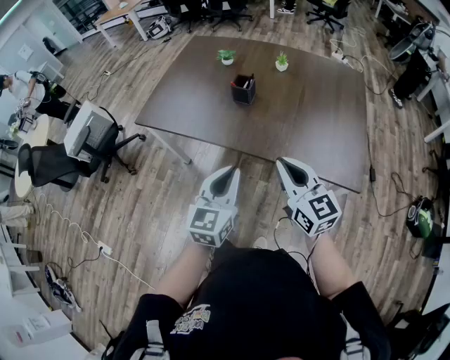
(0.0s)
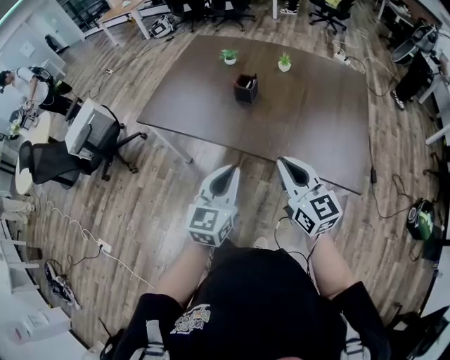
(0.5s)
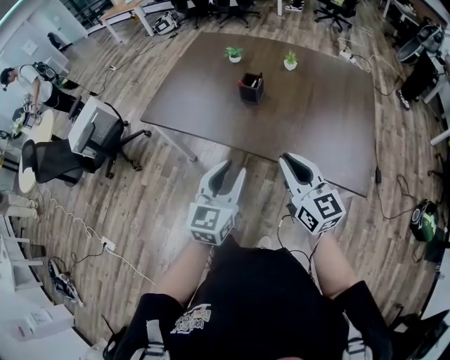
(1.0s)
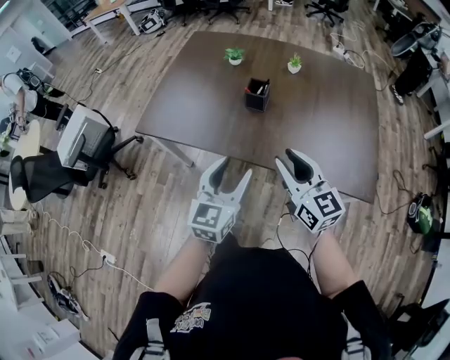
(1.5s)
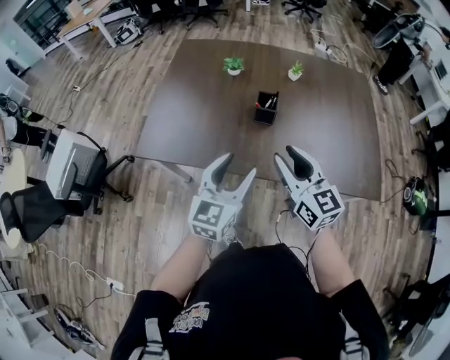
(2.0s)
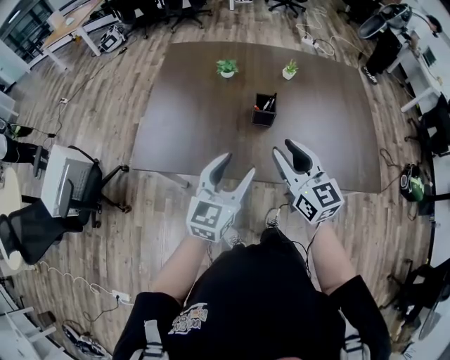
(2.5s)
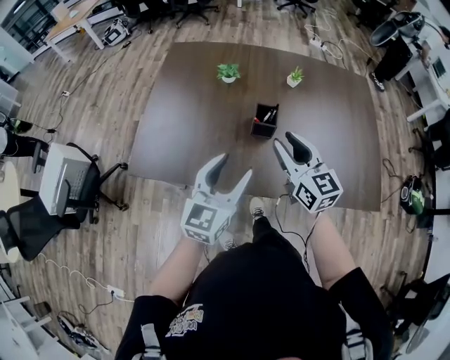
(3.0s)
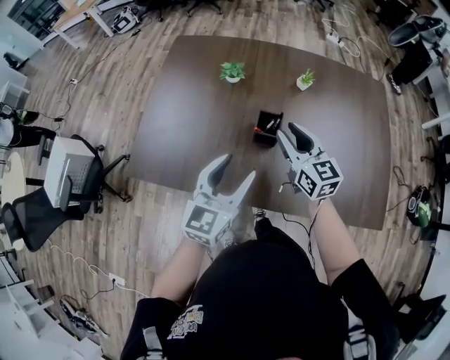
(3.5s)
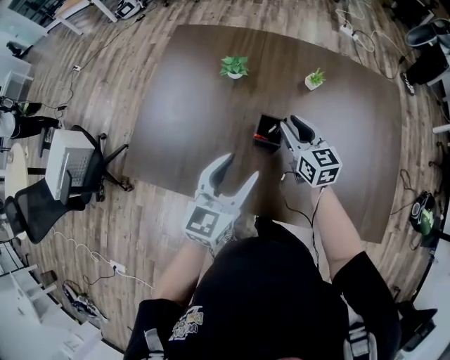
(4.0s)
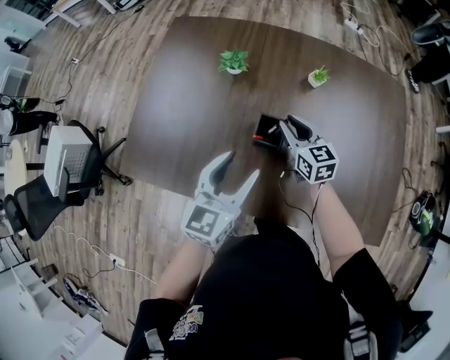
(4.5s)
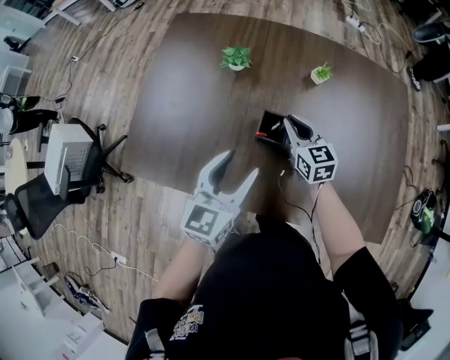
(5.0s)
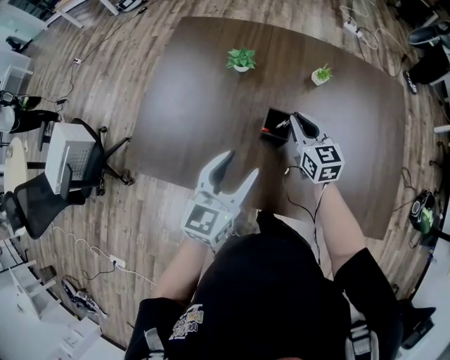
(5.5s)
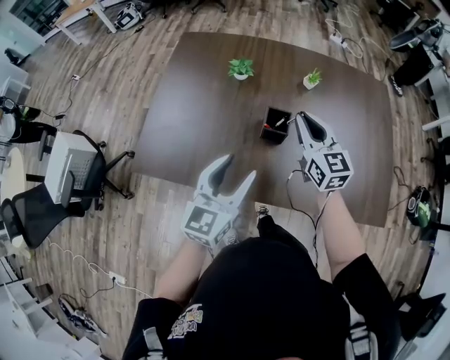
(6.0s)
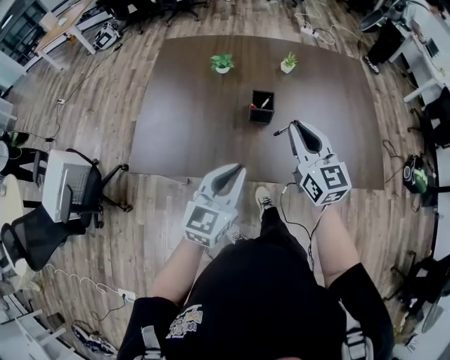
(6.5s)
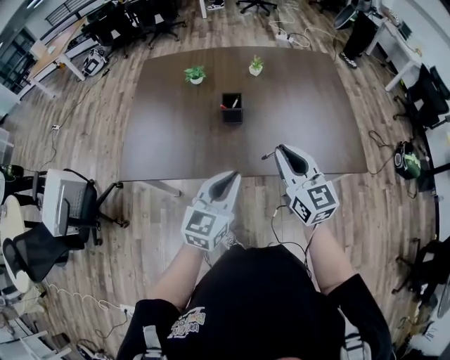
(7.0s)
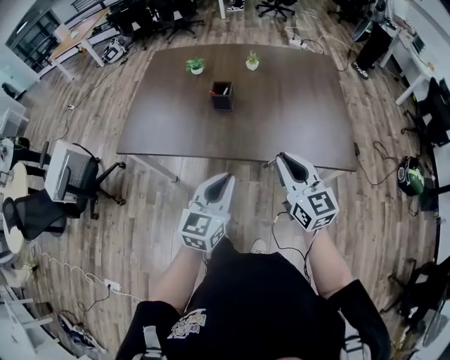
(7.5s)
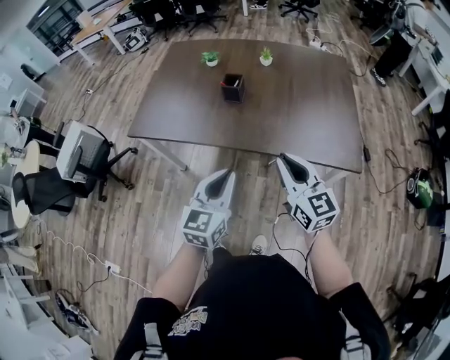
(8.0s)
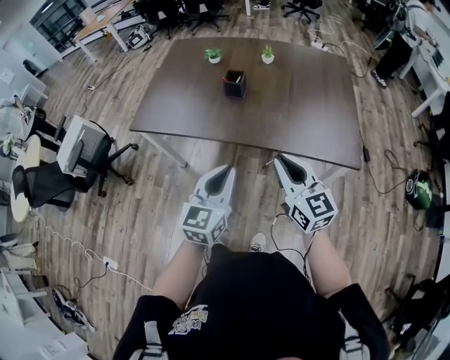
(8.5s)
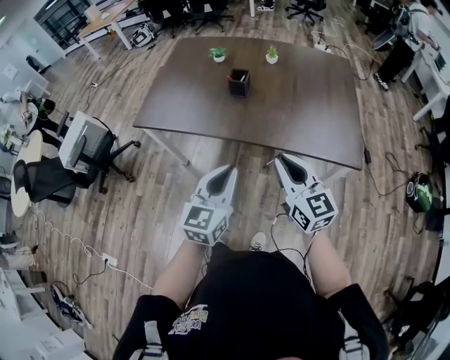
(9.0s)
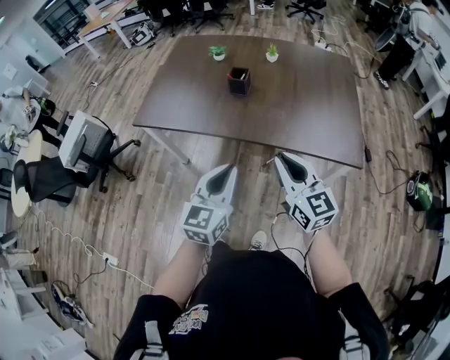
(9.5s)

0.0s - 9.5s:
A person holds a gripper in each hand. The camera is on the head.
0.0s - 2.0s: The grippers both shift forward and to the left by some 25 cm. The right gripper opens; the left gripper opens its fingers.
2.0s - 4.0s: The left gripper moves forward, roughly 20 cm; the right gripper heads forward and downward, covering approximately 35 cm.
4.0s - 5.5s: The right gripper closes up.
5.5s - 7.5s: Both grippers travel together backward and to the right, some 40 cm. The left gripper closes up.
7.5s - 9.5s: Both grippers travel together backward, some 5 cm.

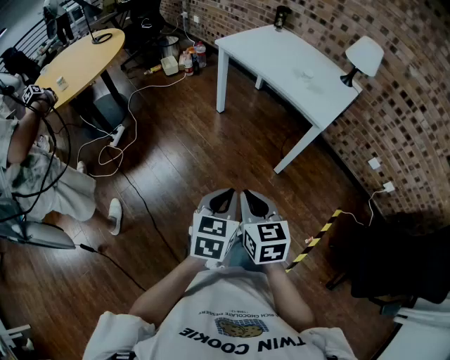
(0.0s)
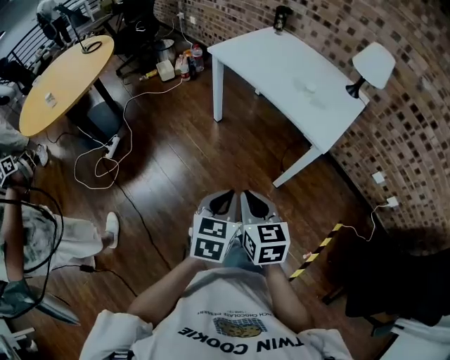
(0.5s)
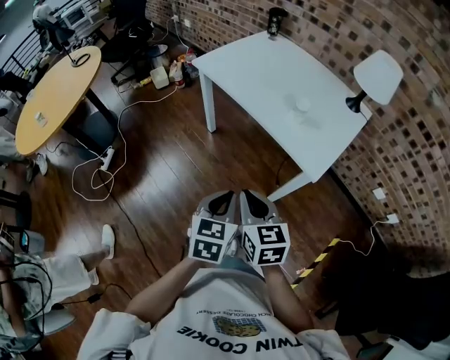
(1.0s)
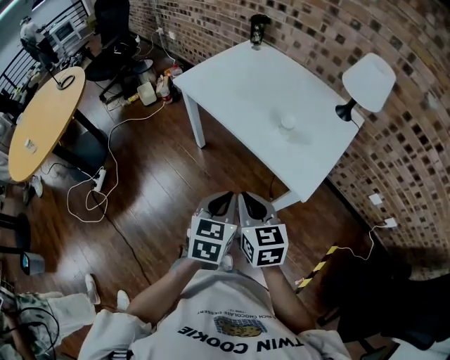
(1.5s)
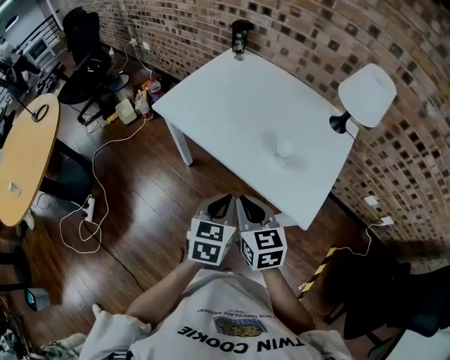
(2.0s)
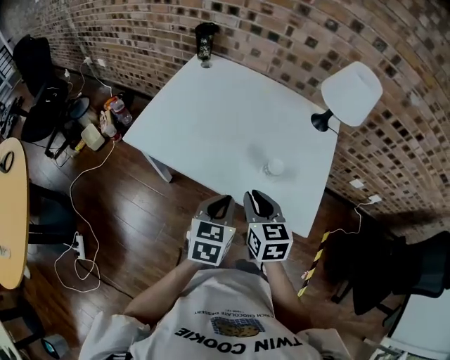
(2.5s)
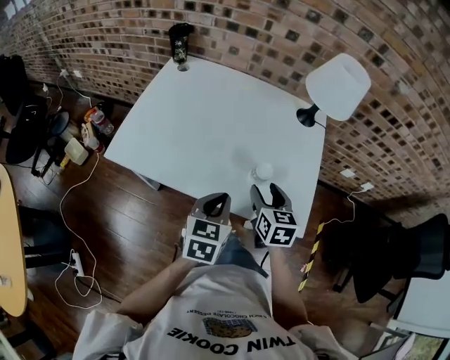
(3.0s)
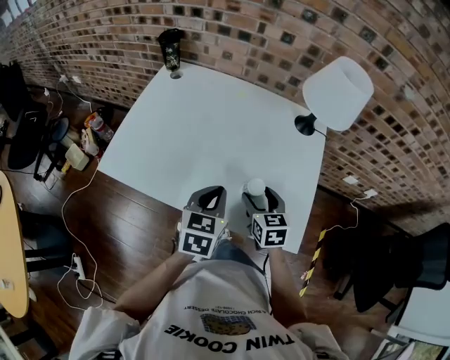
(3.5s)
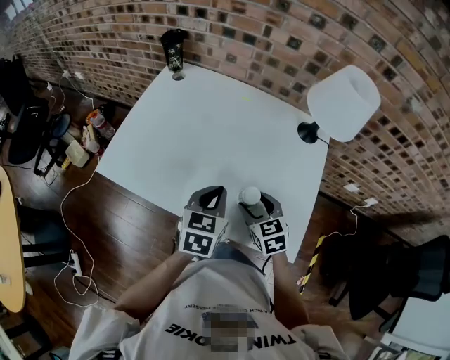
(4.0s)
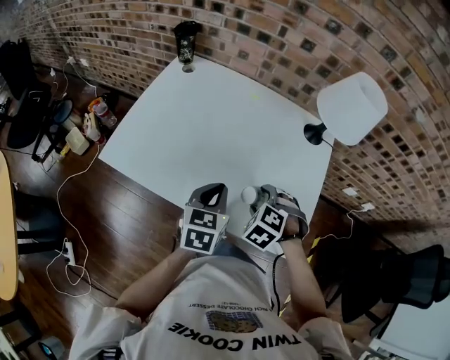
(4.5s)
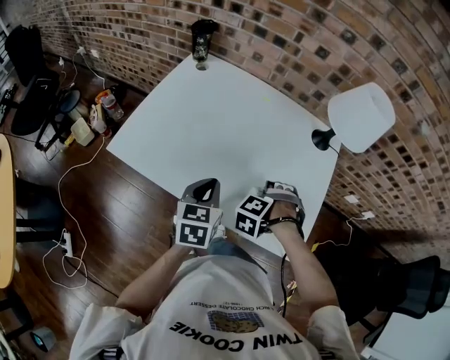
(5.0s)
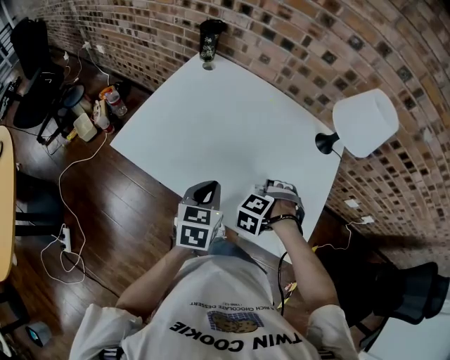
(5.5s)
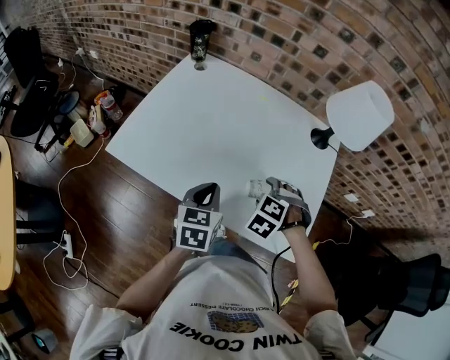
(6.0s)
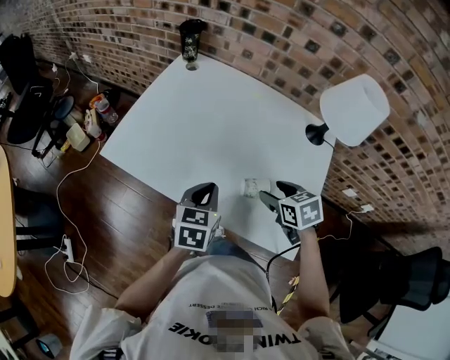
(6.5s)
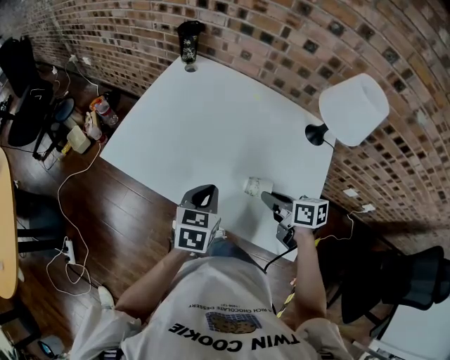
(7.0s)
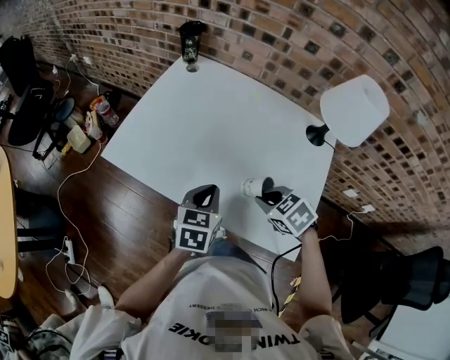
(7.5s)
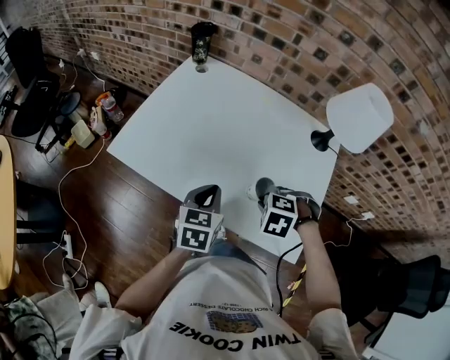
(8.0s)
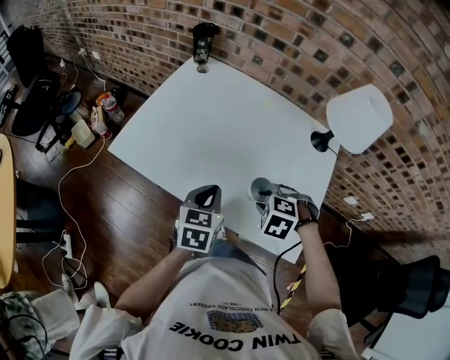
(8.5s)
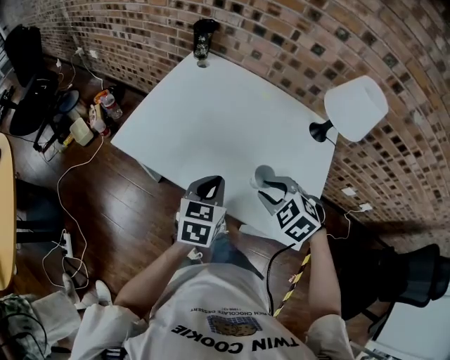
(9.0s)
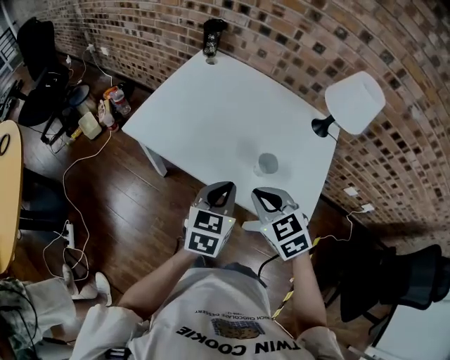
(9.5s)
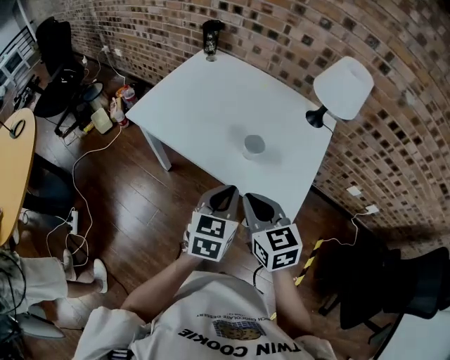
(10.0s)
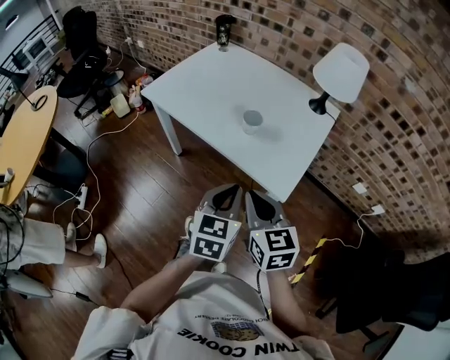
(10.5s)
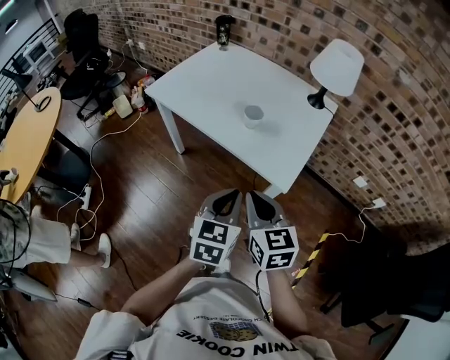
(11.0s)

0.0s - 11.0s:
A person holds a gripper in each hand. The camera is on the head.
0.0s - 2.0s: The two grippers travel together, forward, roughly 50 cm.
2.0s - 3.5s: The left gripper shifts by approximately 20 cm. The right gripper shifts by some 25 cm, swivels some 30 degrees, and opens up.
3.5s - 5.5s: The left gripper moves roughly 10 cm. Meanwhile the right gripper rolls counterclockwise, seen from behind, by about 80 degrees.
5.5s - 7.5s: The right gripper heads upward, covering about 5 cm, changes its angle by approximately 60 degrees, and closes.
7.5s - 9.0s: The right gripper is displaced upward by about 5 cm, and swivels roughly 20 degrees.
9.0s - 11.0s: The grippers both shift backward by about 30 cm. The right gripper angles its fingers upward, by about 40 degrees, and closes.

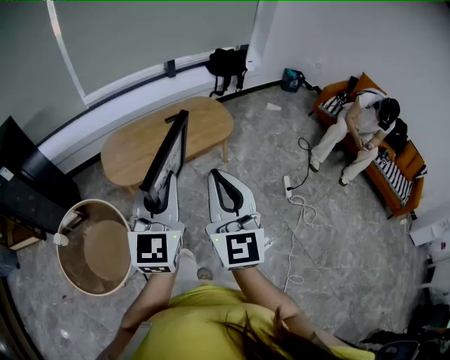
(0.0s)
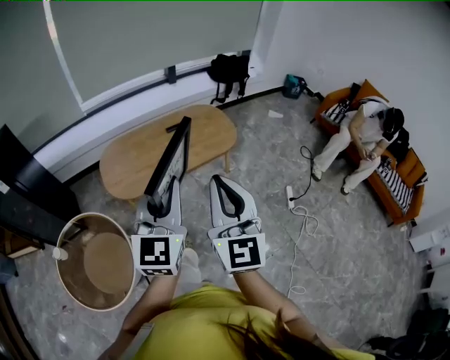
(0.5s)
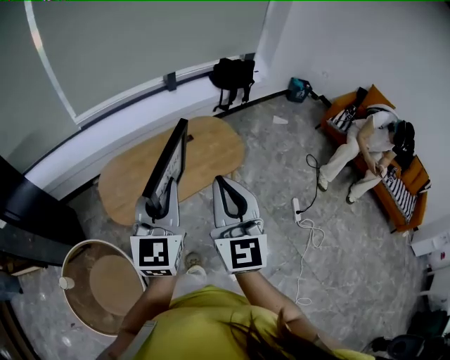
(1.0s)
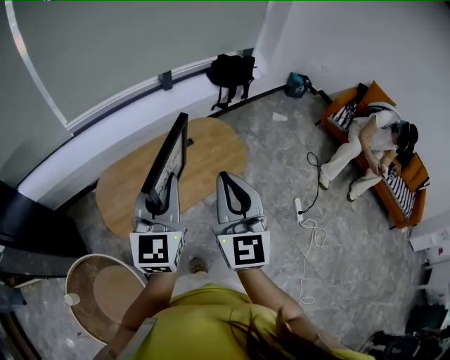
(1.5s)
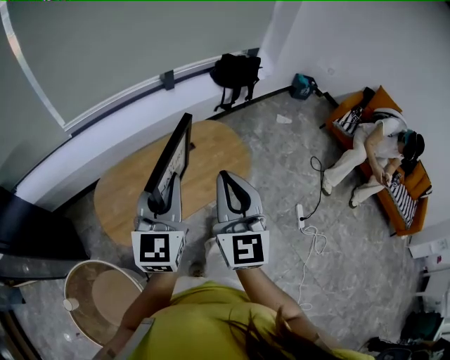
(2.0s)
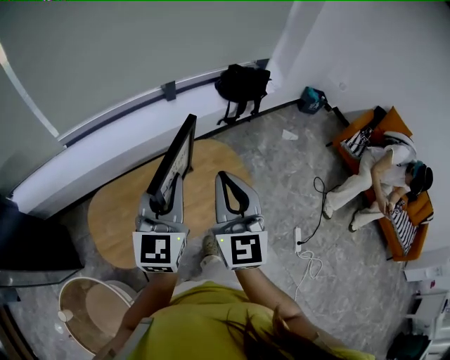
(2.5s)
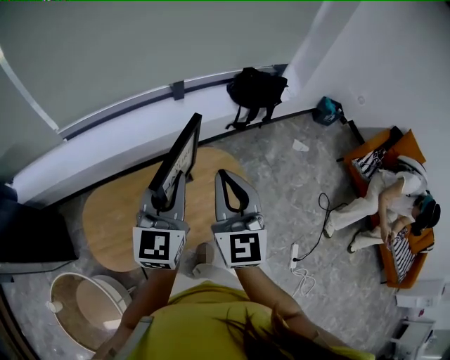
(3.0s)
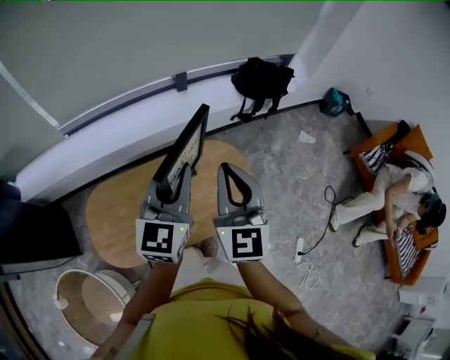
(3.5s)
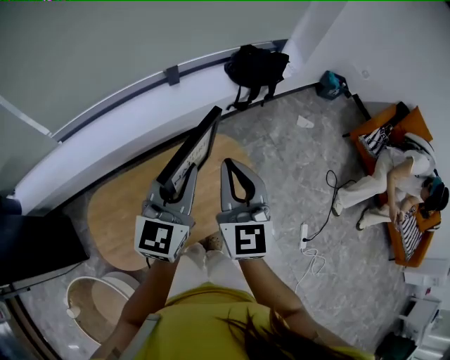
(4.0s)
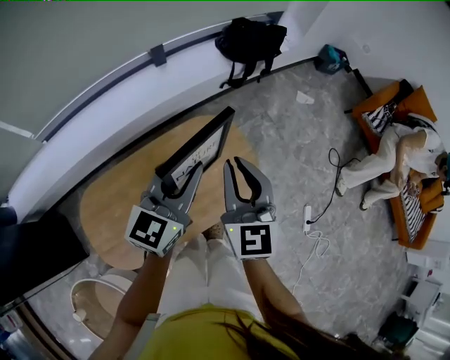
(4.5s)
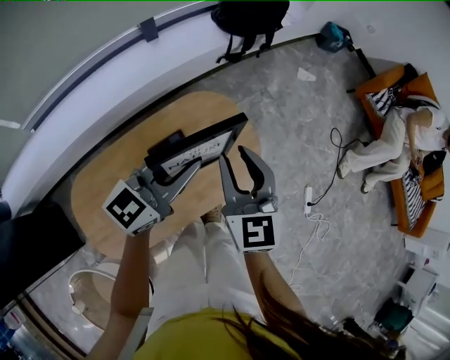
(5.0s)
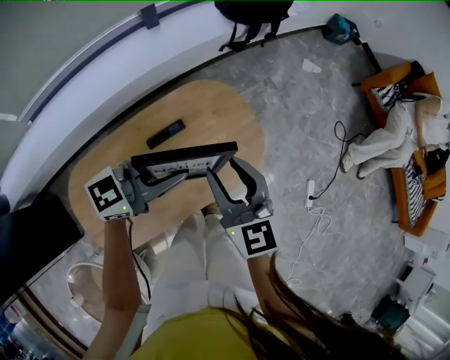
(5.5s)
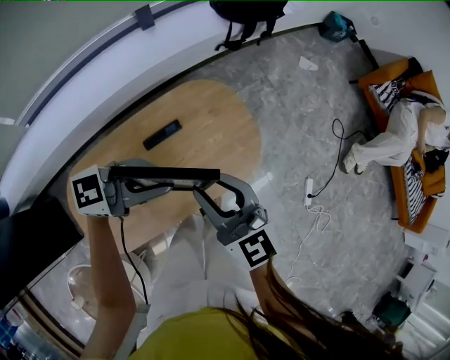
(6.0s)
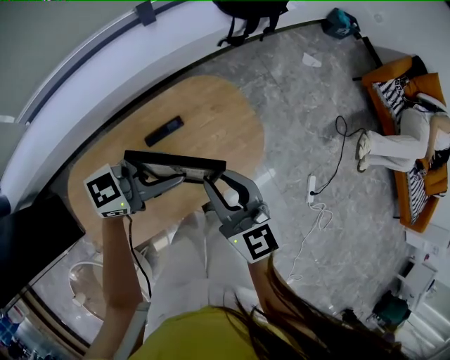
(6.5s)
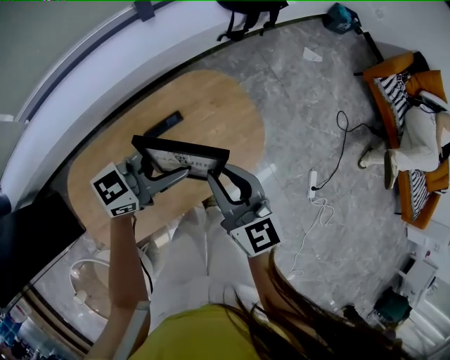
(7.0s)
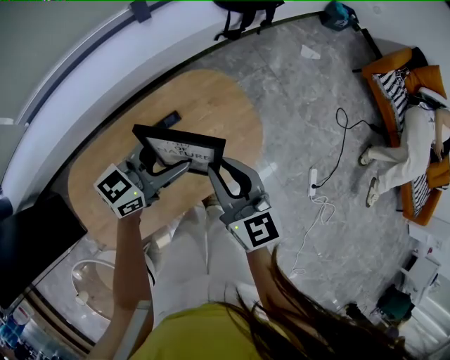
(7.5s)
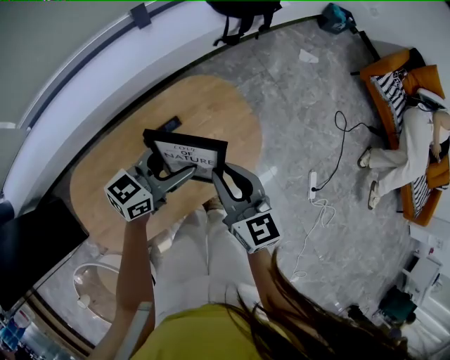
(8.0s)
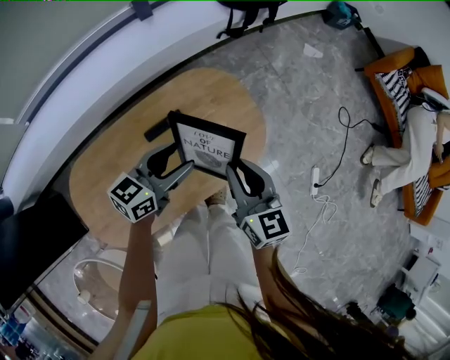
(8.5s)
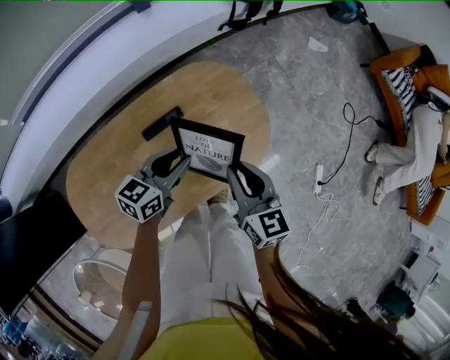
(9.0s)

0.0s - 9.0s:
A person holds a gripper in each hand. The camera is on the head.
0.0s - 2.0s: The pair of grippers is taken forward, about 40 cm.
2.0s - 4.5s: The grippers both shift forward by roughly 35 cm. The left gripper turns by about 20 degrees.
4.5s - 7.0s: The right gripper moves downward and backward, about 15 cm, swivels about 20 degrees, and opens, then closes once more. Meanwhile the left gripper moves downward, some 15 cm, rotates some 30 degrees, and opens.
7.0s - 9.0s: The left gripper travels downward by approximately 15 cm, swivels about 30 degrees, and opens, then closes once more; the right gripper travels downward and to the right by approximately 10 cm.
